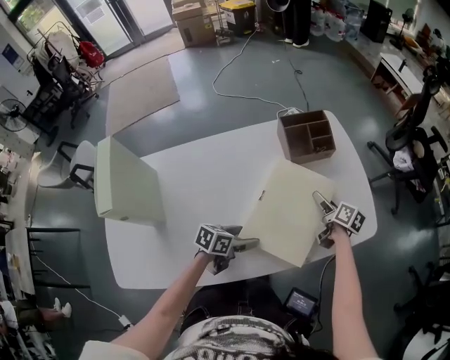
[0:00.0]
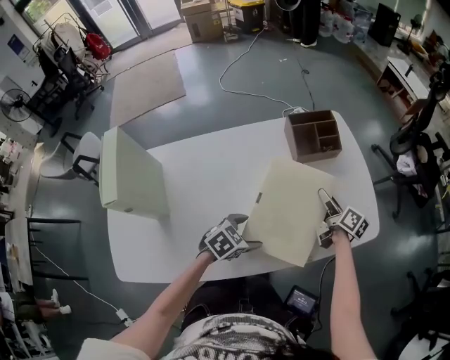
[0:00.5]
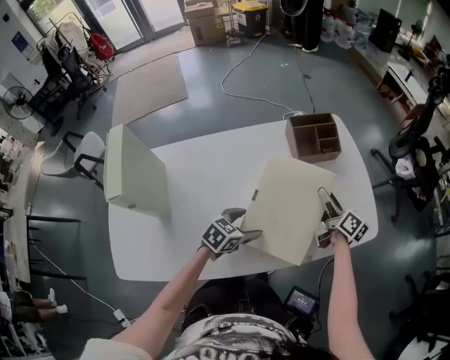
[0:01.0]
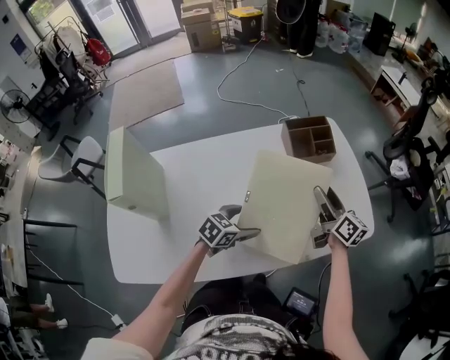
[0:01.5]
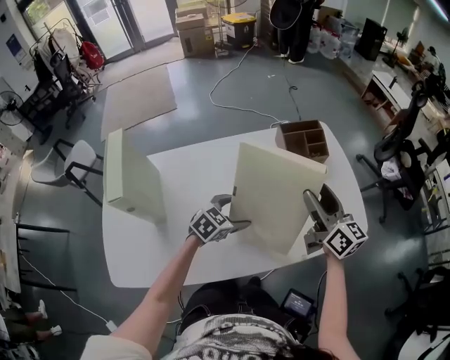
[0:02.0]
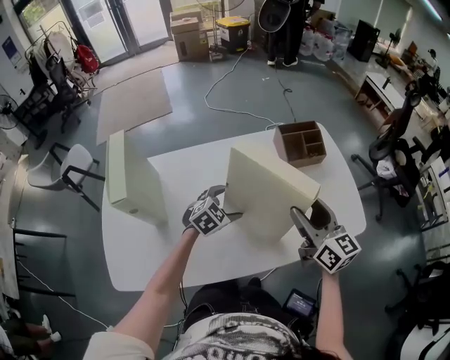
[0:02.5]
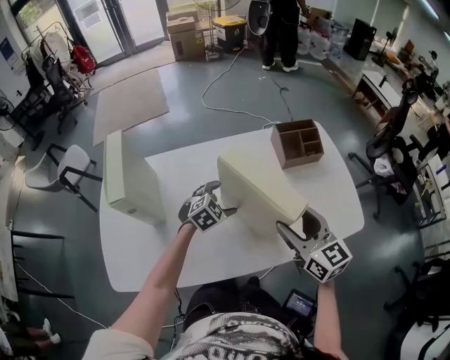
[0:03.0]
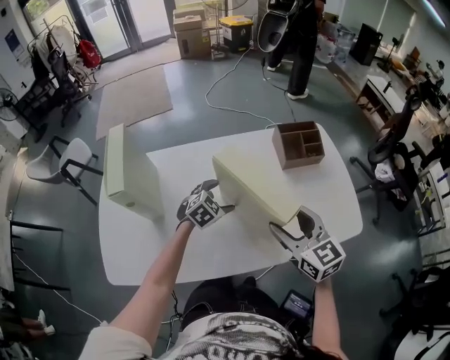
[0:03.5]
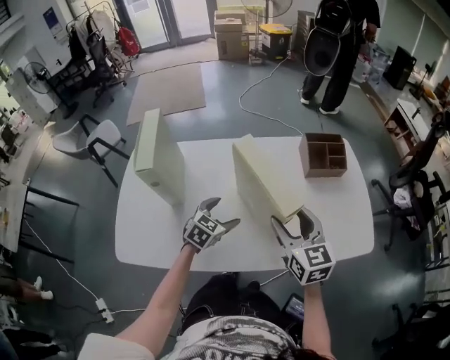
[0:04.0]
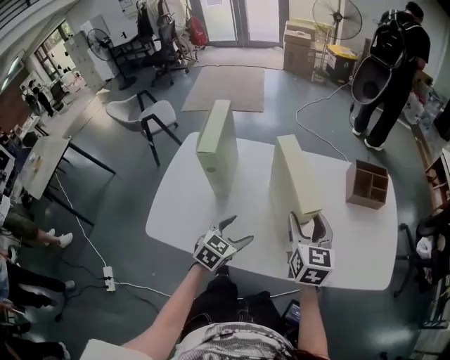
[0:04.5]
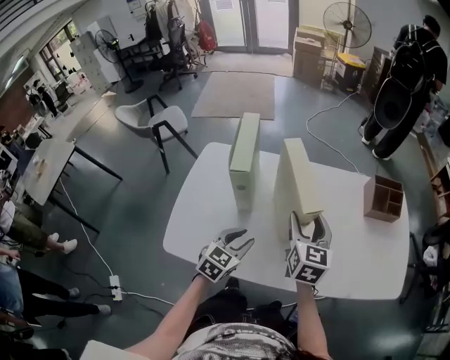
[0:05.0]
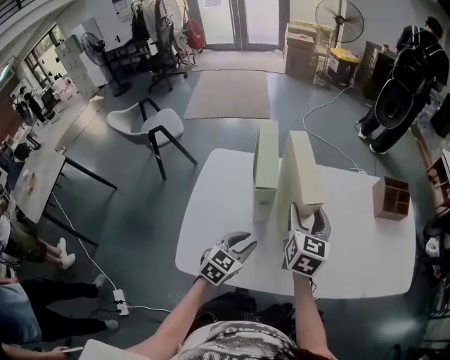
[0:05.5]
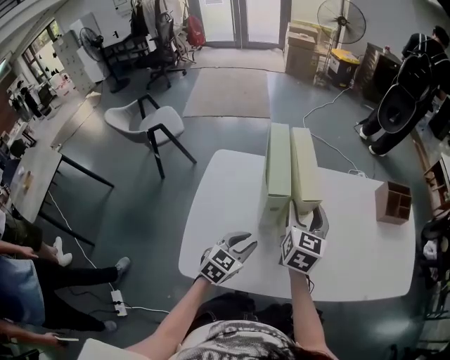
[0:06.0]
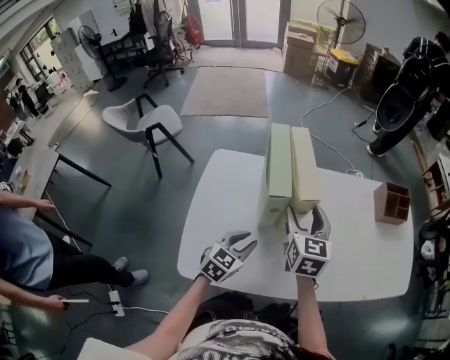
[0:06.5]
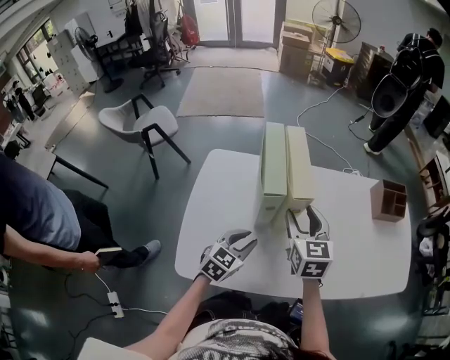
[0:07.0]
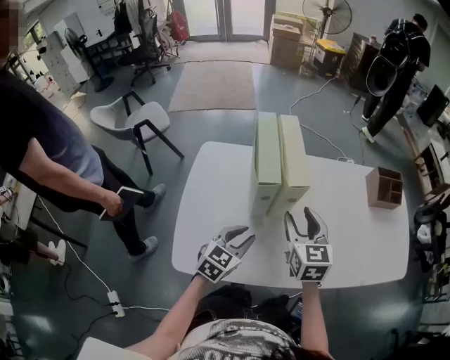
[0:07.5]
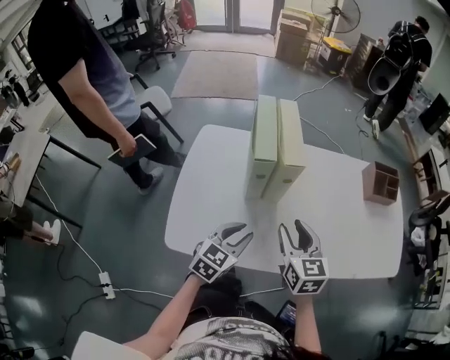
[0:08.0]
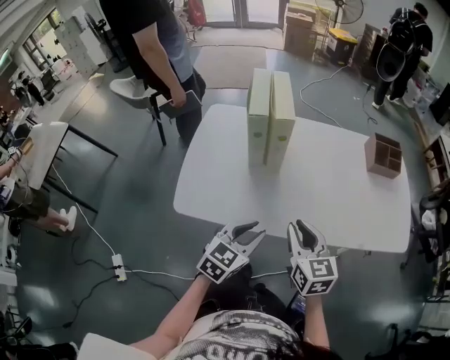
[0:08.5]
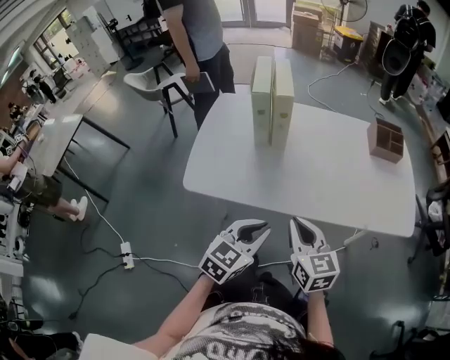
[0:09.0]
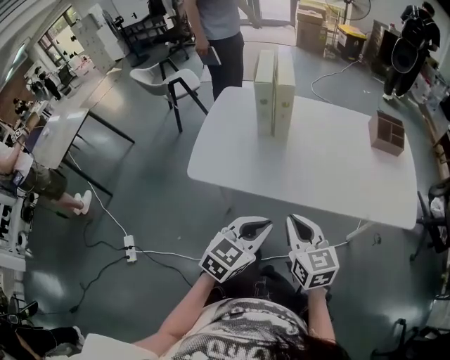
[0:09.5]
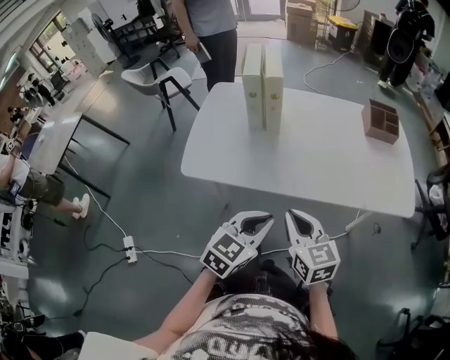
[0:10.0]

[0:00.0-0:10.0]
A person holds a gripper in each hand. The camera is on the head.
0.0 to 2.0 s: The right gripper shifts some 25 cm upward, and tilts its fingers some 30 degrees upward, while the left gripper shifts approximately 5 cm upward, and changes its angle by some 40 degrees.
2.0 to 4.0 s: The right gripper heads to the left and backward, covering approximately 15 cm, and changes its angle by about 30 degrees; the left gripper goes approximately 10 cm to the left, and rotates approximately 20 degrees.
4.0 to 6.0 s: The right gripper travels to the left by some 30 cm. Meanwhile the left gripper moves to the left and backward, some 25 cm, and closes up.
6.0 to 8.0 s: The right gripper shifts roughly 15 cm backward and to the right, and rotates roughly 20 degrees, while the left gripper moves backward and to the right, roughly 10 cm.
8.0 to 10.0 s: The left gripper shifts roughly 30 cm backward and to the right. The right gripper travels backward by roughly 25 cm, and closes its fingers.

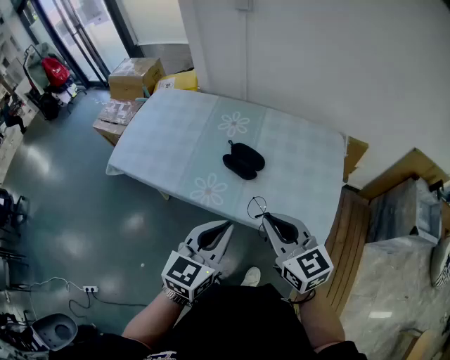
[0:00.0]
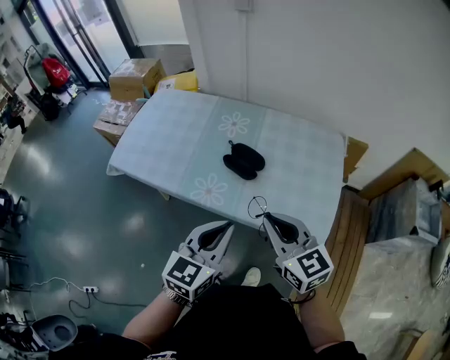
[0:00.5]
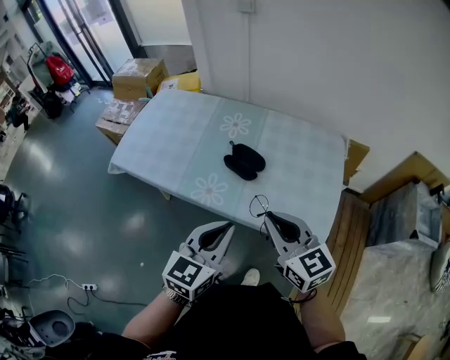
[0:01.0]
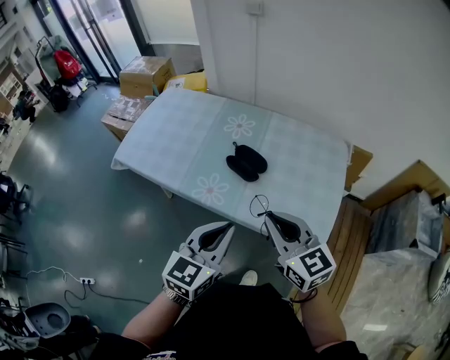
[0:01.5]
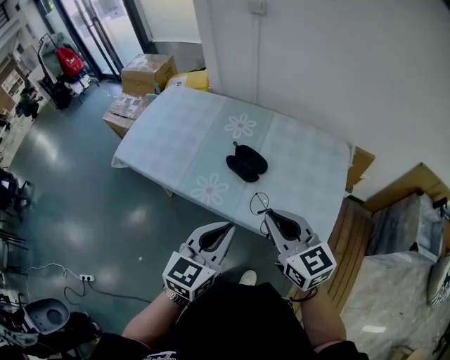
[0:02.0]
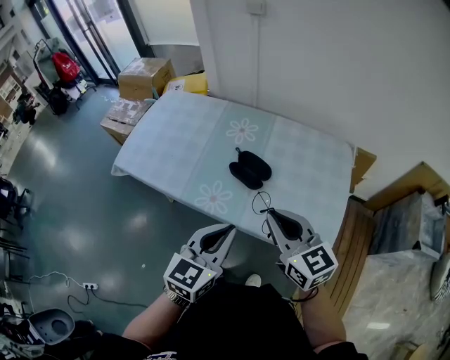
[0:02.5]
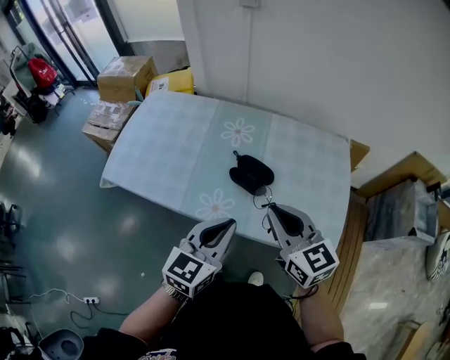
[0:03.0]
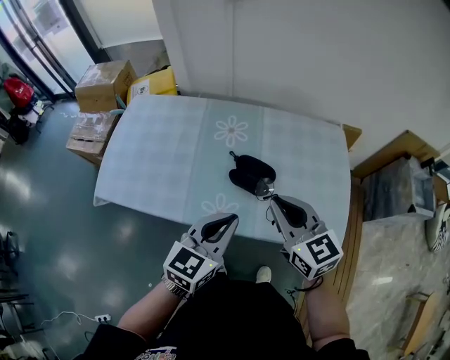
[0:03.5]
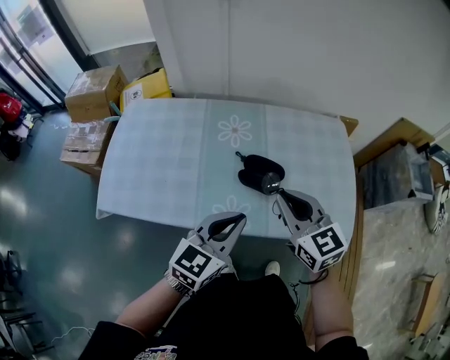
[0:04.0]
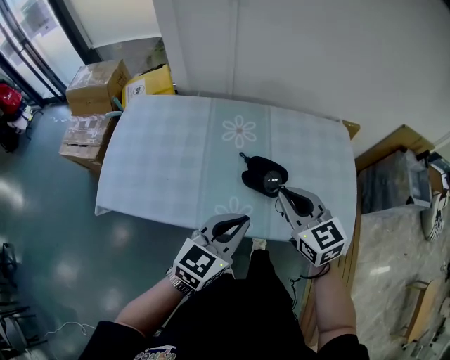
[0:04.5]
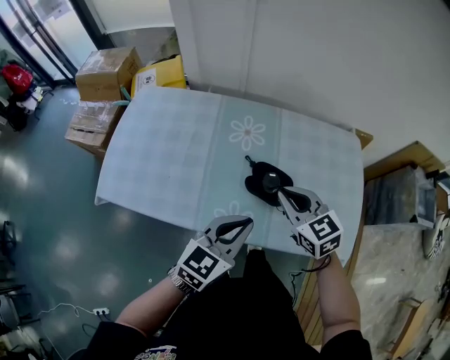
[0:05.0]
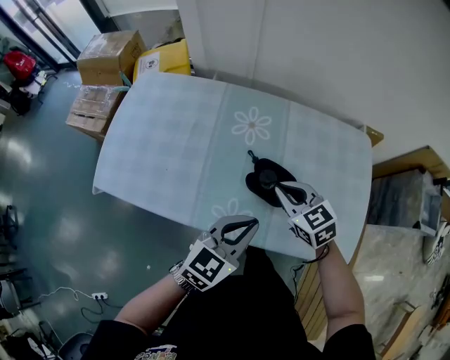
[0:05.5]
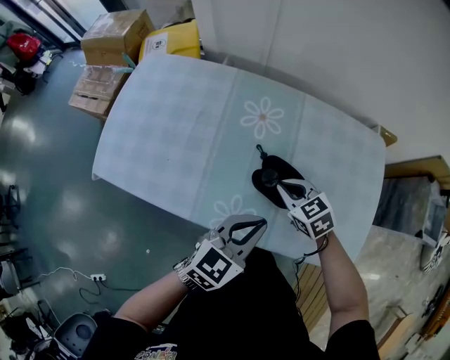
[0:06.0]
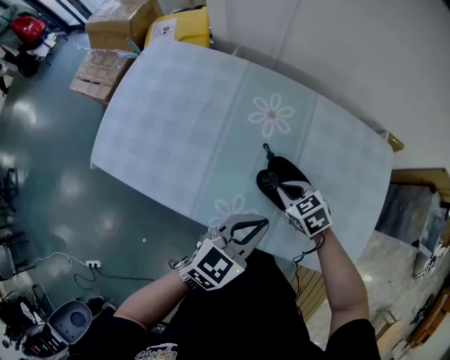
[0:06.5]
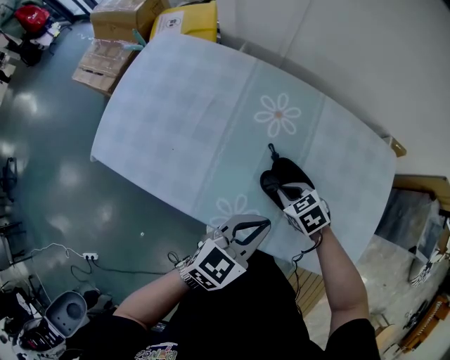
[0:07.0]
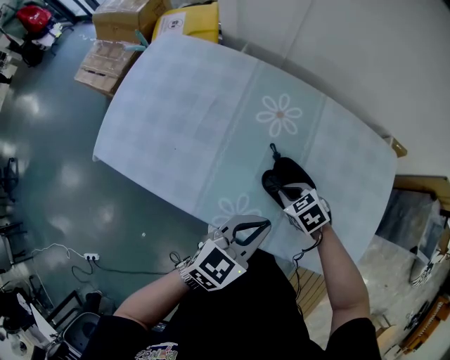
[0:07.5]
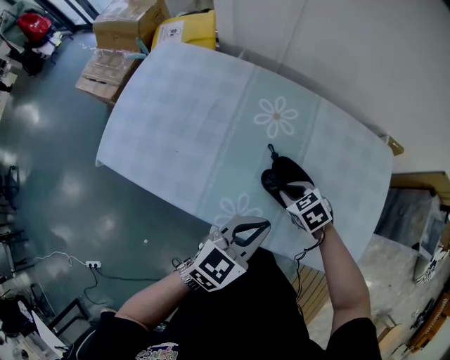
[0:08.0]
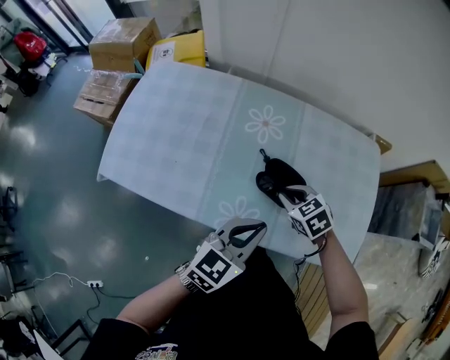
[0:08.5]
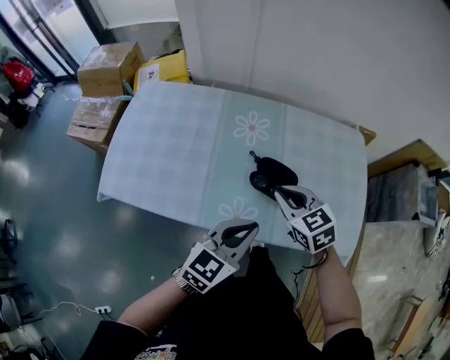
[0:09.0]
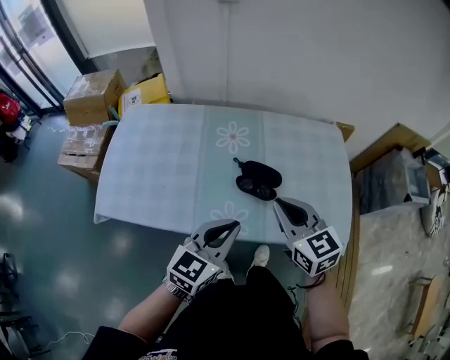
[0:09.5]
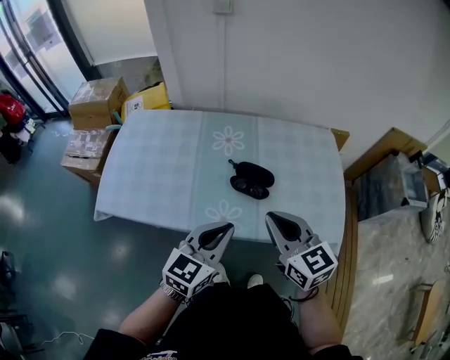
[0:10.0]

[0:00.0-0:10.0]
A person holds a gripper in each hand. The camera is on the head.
0.0 to 2.0 s: The grippers move only a little.
2.0 to 4.0 s: Both grippers move forward and to the left, roughly 20 cm. The right gripper changes its angle by some 20 degrees; the left gripper changes its angle by approximately 30 degrees.
4.0 to 6.0 s: The left gripper heads downward and forward, covering some 10 cm, while the right gripper moves downward and forward, approximately 25 cm, and changes its angle by approximately 40 degrees.
6.0 to 8.0 s: The right gripper travels downward by some 5 cm.
8.0 to 10.0 s: The left gripper is displaced backward and upward by roughly 15 cm, while the right gripper is displaced upward and backward by about 30 cm, and angles its fingers upward, by about 50 degrees.

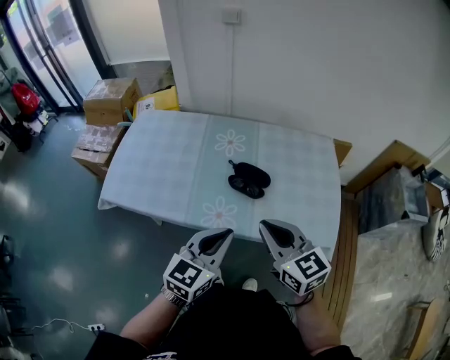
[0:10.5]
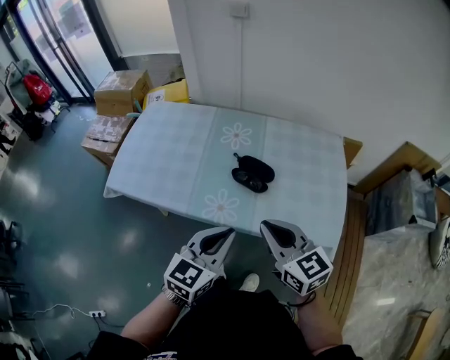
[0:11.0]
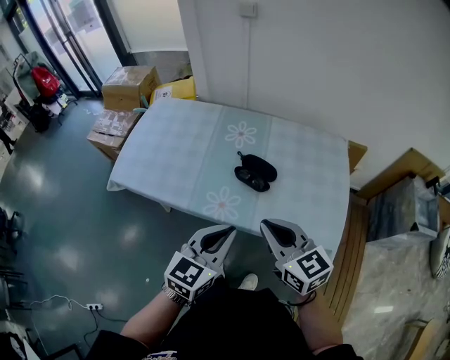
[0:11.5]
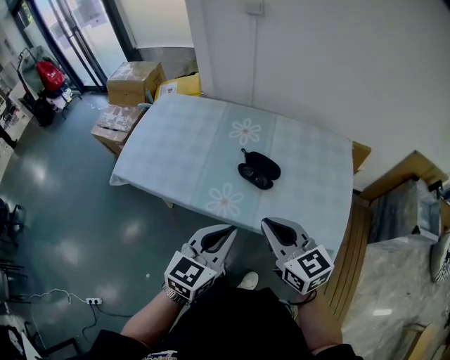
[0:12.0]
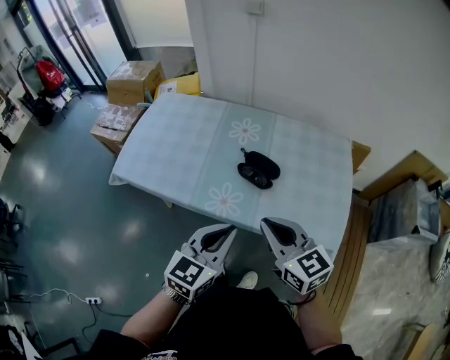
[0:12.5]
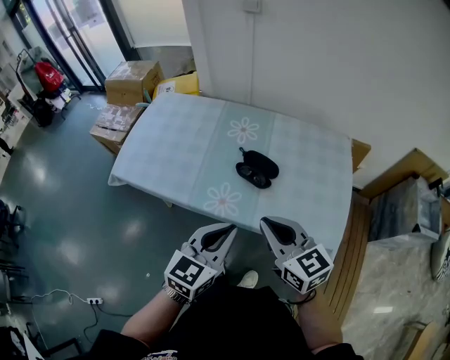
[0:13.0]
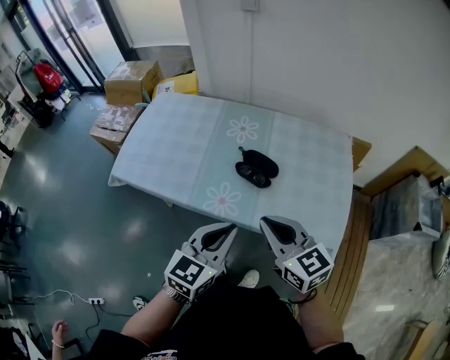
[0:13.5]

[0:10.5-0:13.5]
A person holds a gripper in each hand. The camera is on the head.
10.5 to 12.0 s: The grippers move only a little.
12.0 to 13.5 s: Both grippers stay about where they are.

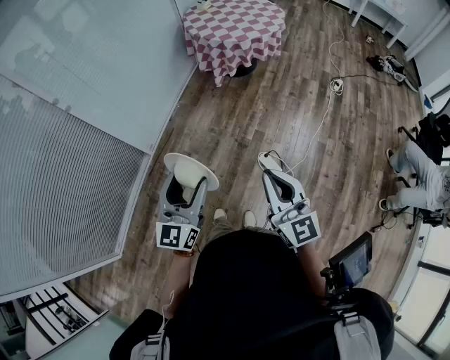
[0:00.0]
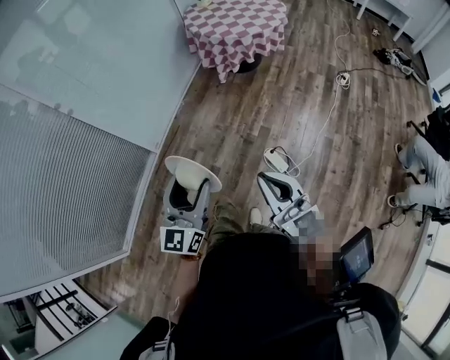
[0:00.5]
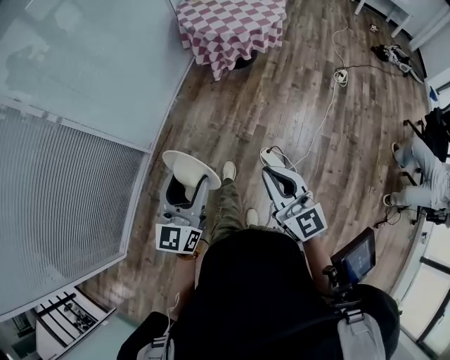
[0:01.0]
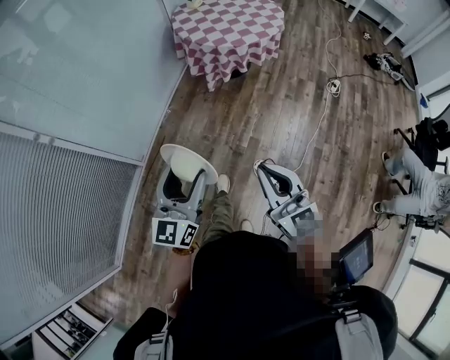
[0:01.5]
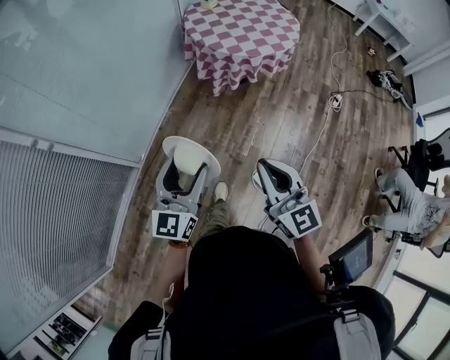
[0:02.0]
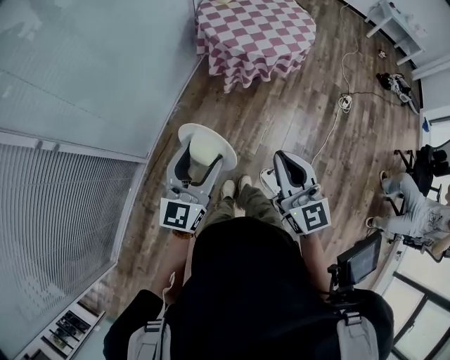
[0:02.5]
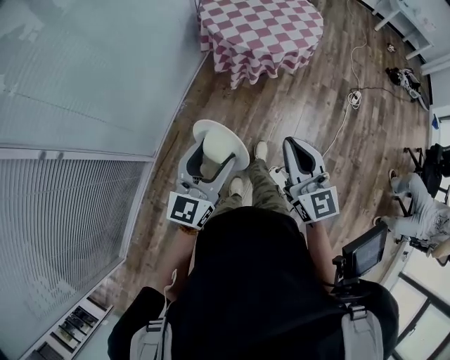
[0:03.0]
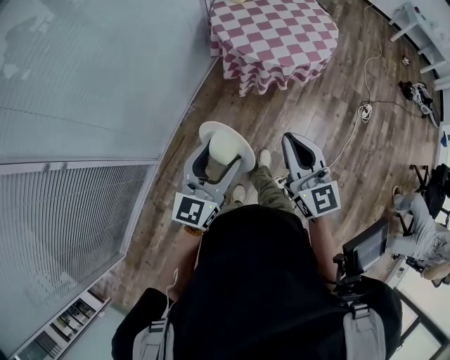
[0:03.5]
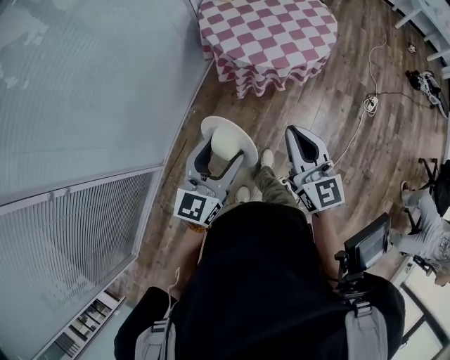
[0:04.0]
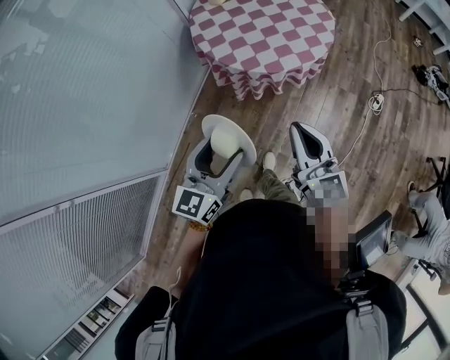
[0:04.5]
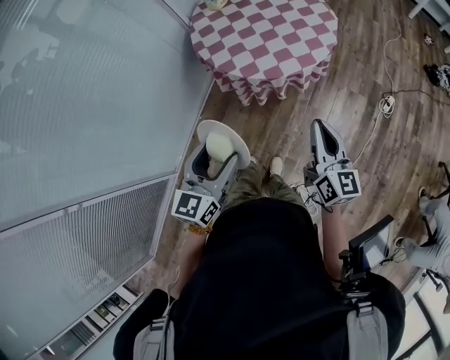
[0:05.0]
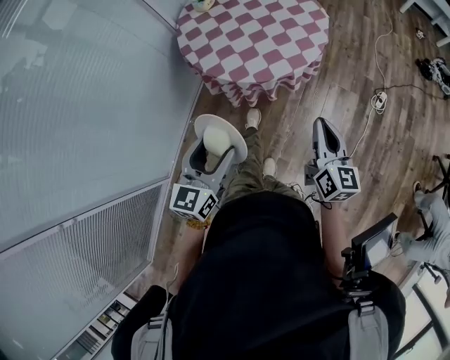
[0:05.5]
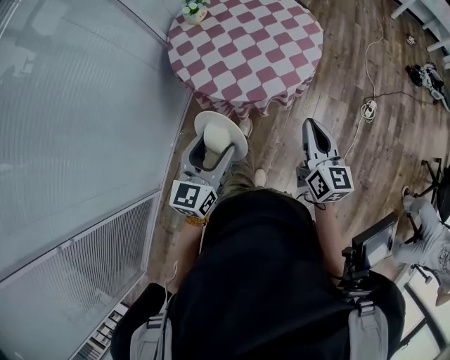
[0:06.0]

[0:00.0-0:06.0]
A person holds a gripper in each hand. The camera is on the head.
0.0 to 2.0 s: Both grippers move forward, about 30 cm.
2.0 to 4.0 s: The two grippers go some 30 cm forward.
4.0 to 6.0 s: The right gripper shifts approximately 30 cm forward and to the right, and turns by about 30 degrees. The left gripper heads forward, covering about 25 cm.
